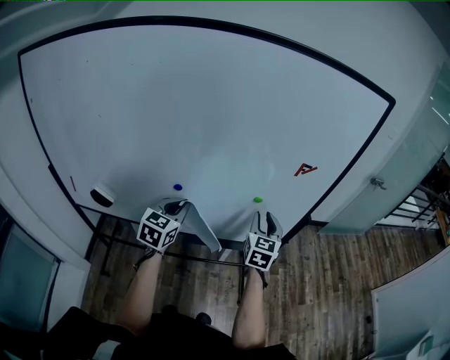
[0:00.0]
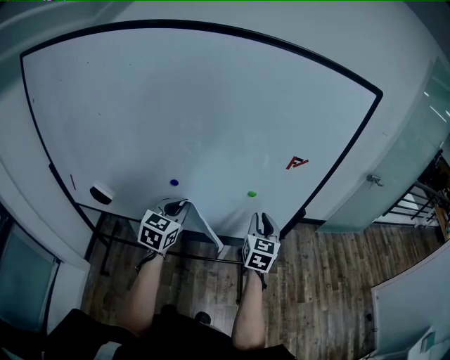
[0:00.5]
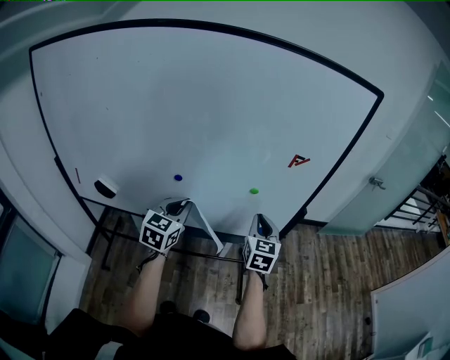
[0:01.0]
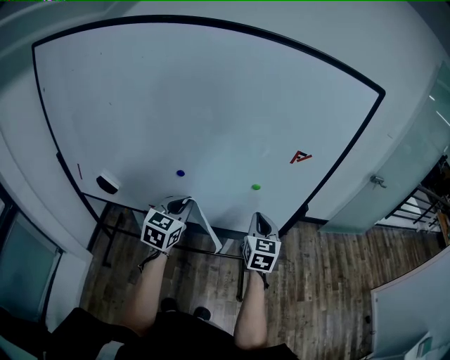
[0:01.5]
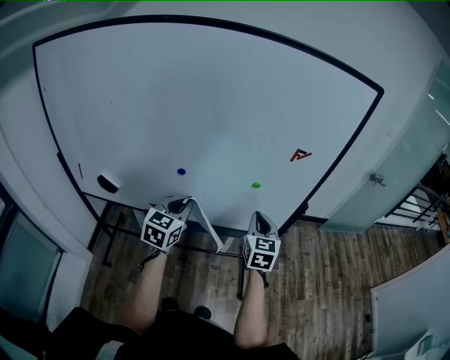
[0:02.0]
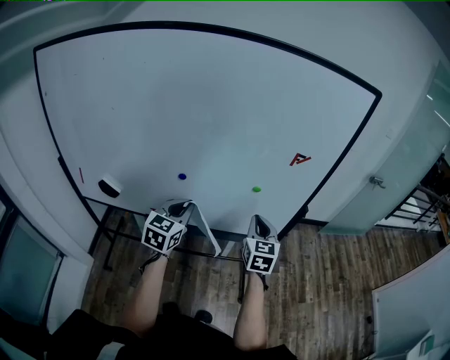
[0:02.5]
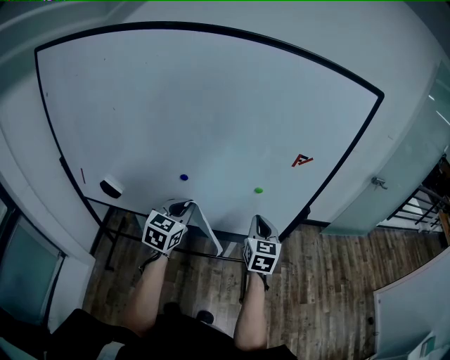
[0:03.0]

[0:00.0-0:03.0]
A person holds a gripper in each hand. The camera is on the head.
0:00.0 to 0:01.5: The two grippers go some 5 cm backward. The right gripper closes.
0:01.5 to 0:03.0: Both grippers stay put.

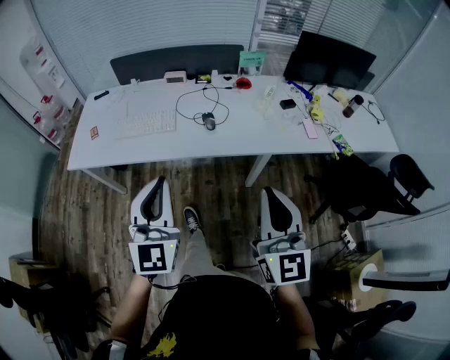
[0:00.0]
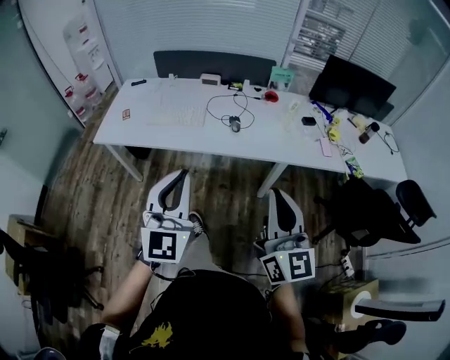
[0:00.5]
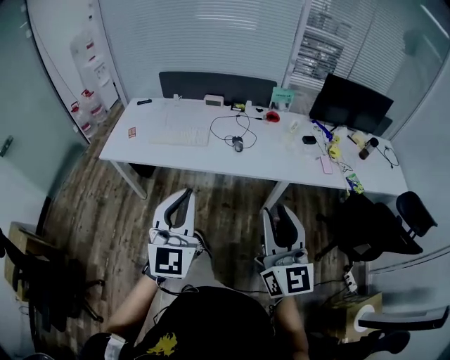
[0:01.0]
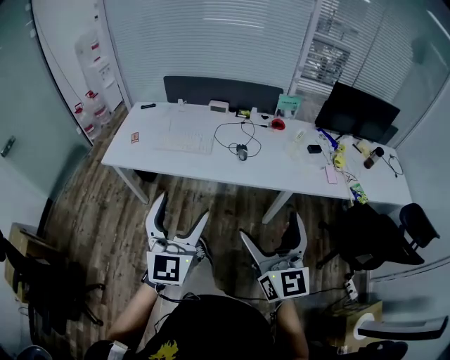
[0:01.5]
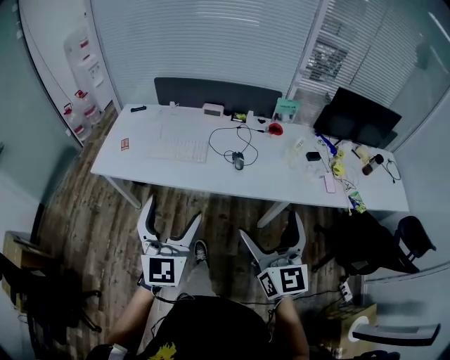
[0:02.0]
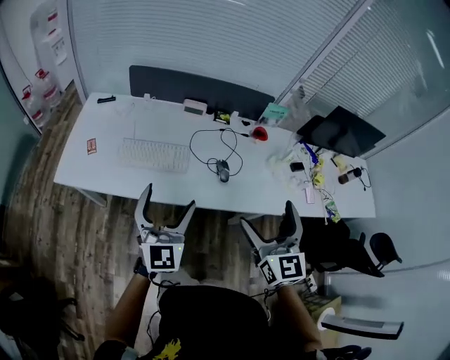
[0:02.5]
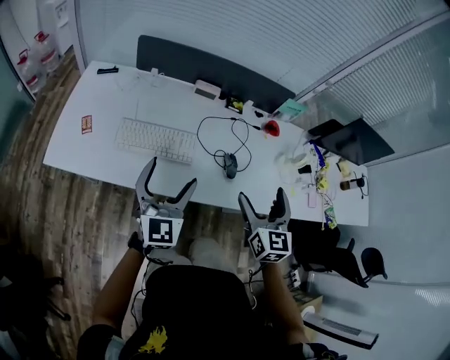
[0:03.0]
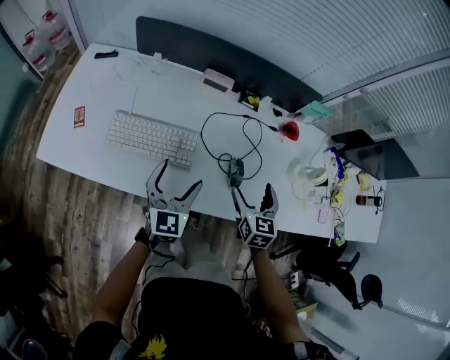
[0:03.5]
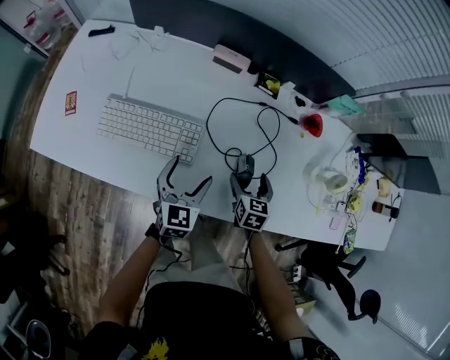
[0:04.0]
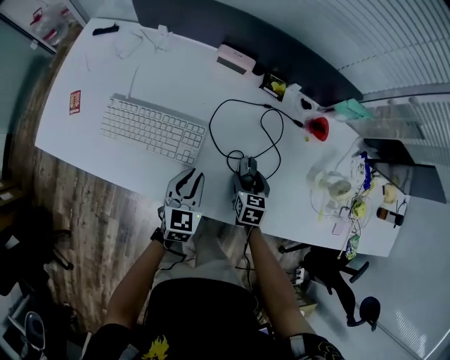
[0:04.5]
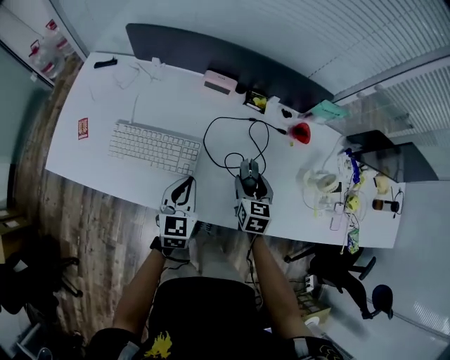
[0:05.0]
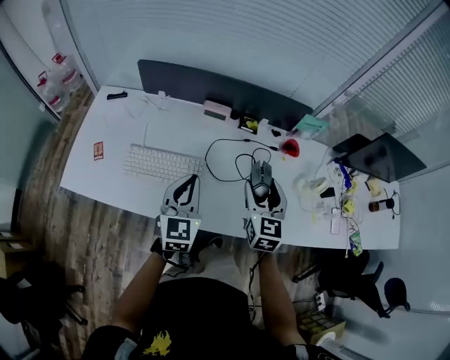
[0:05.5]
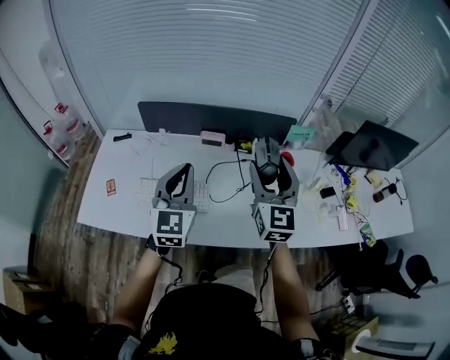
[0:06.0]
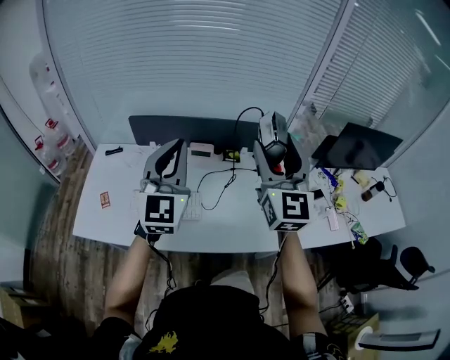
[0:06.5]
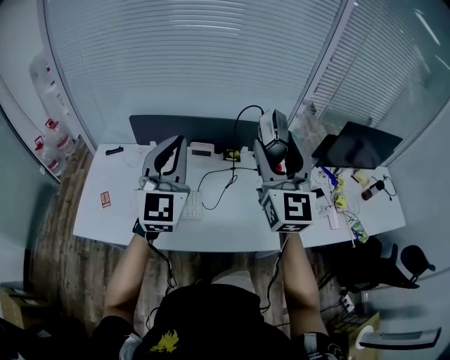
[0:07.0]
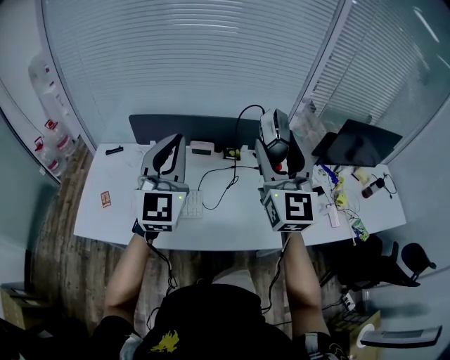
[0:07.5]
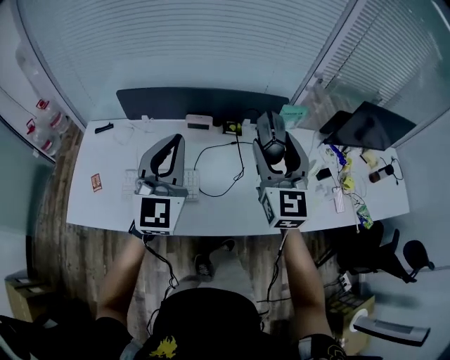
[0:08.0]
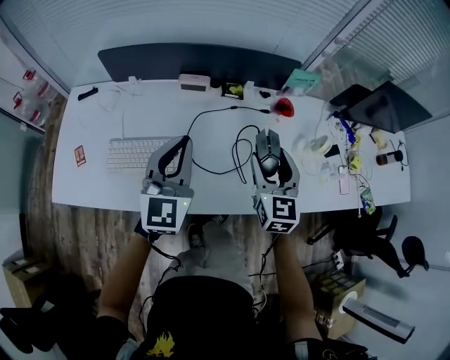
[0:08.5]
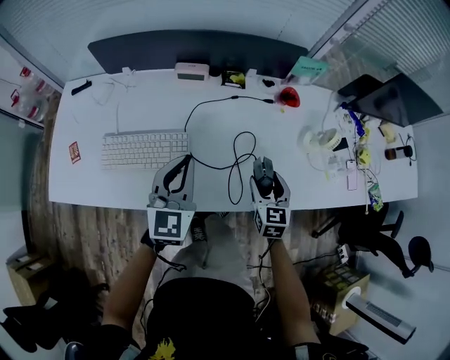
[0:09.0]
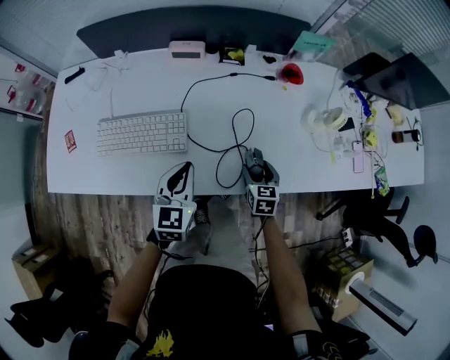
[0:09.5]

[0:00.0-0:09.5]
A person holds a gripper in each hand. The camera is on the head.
0:00.0 to 0:02.0: The left gripper reaches roughly 10 cm backward, then returns, and opens its fingers; the right gripper moves forward and to the left, roughly 10 cm, and opens.
0:02.0 to 0:04.0: The two grippers travel together, forward, about 50 cm. Both grippers travel together downward, approximately 40 cm. The left gripper tilts its fingers about 40 degrees downward. The right gripper angles its fingers downward, by roughly 50 degrees.
0:04.0 to 0:05.5: Both grippers move upward, some 25 cm. The left gripper closes its fingers, while the right gripper turns by about 30 degrees.
0:05.5 to 0:07.5: The two grippers go some 30 cm upward. The left gripper rotates approximately 30 degrees. The right gripper angles its fingers upward, by approximately 30 degrees.
0:07.5 to 0:09.5: The grippers both shift downward by some 50 cm. The right gripper tips its fingers downward by some 60 degrees. The left gripper angles its fingers downward, by roughly 40 degrees.

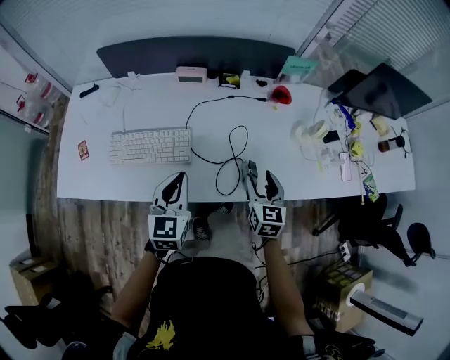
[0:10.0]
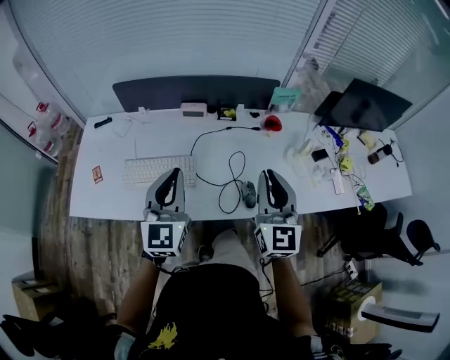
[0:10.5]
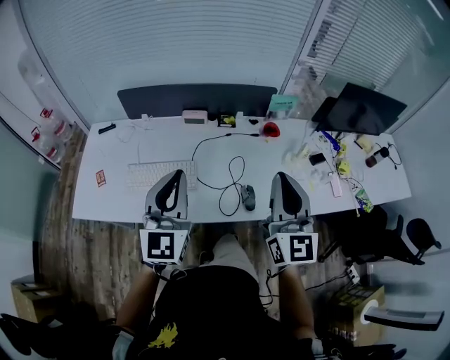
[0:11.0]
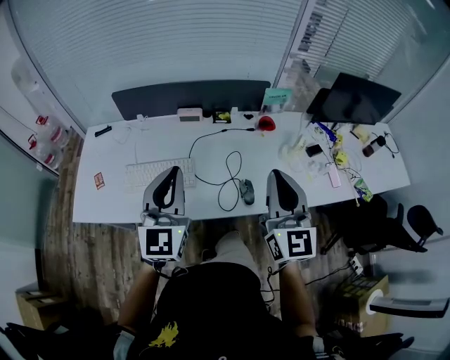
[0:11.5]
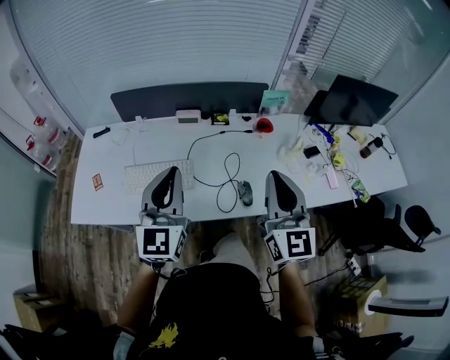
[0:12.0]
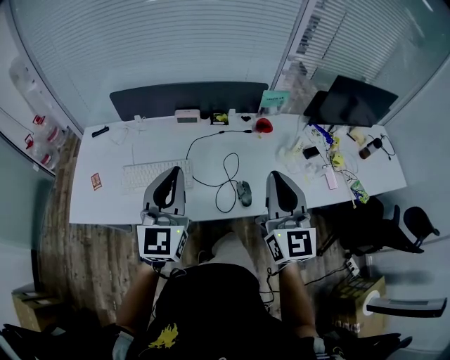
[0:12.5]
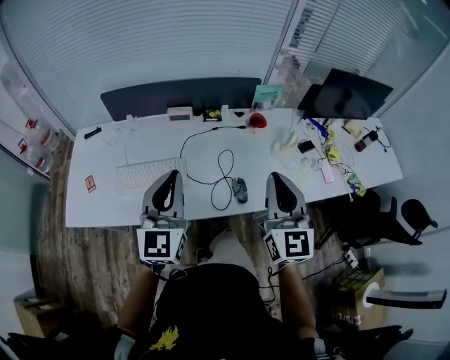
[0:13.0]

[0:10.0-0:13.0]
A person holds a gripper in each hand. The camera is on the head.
0:10.0 to 0:11.5: Both grippers travel together upward, some 25 cm. The left gripper swivels roughly 30 degrees, while the right gripper tips its fingers upward by some 30 degrees, and closes its fingers.
0:11.5 to 0:13.0: The grippers make only small movements.

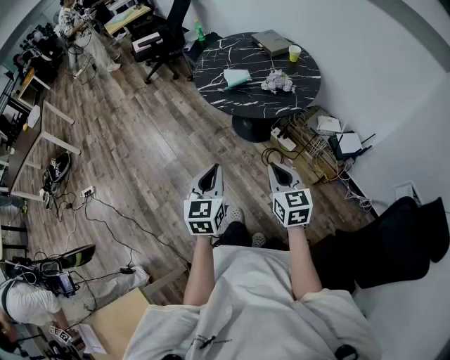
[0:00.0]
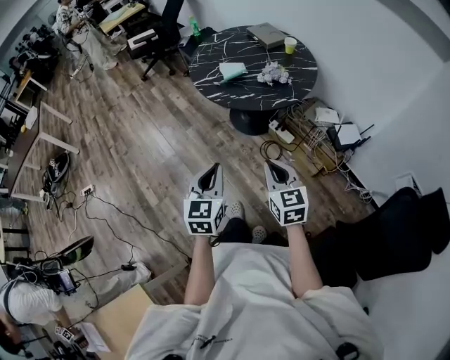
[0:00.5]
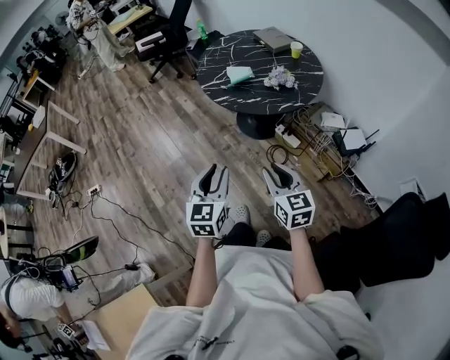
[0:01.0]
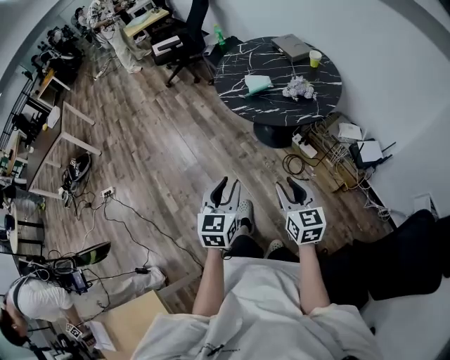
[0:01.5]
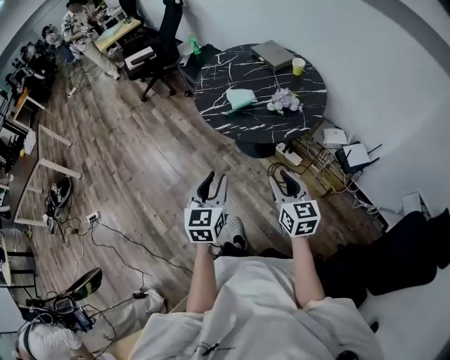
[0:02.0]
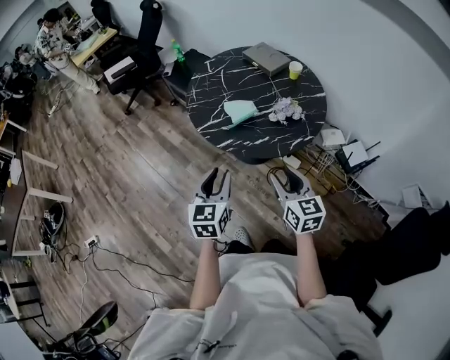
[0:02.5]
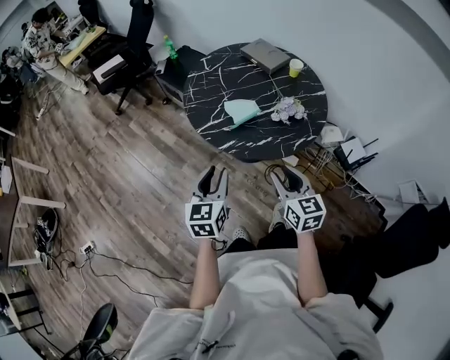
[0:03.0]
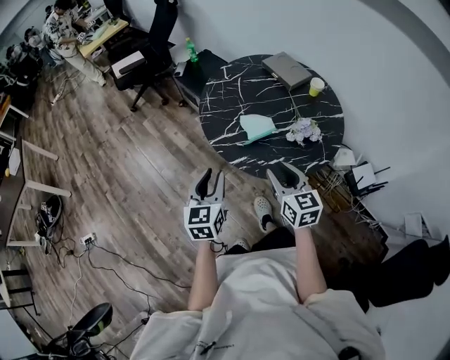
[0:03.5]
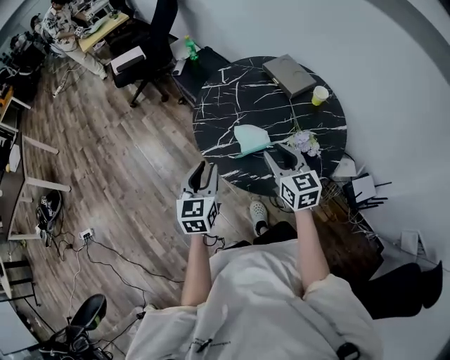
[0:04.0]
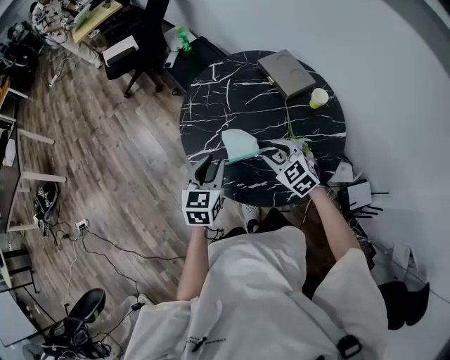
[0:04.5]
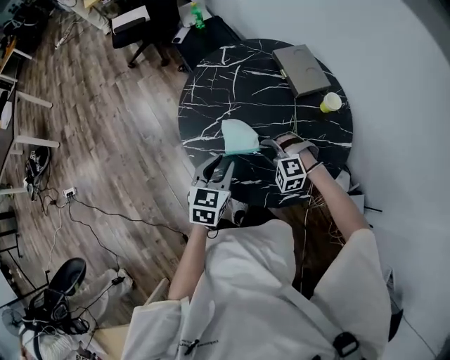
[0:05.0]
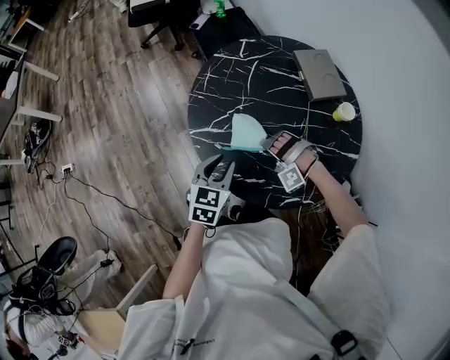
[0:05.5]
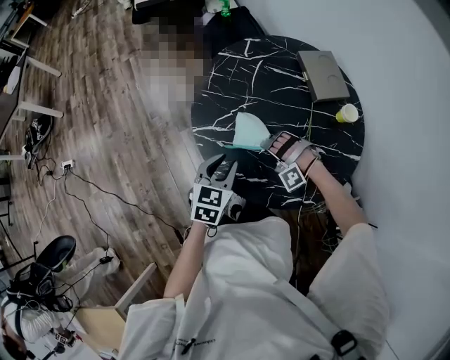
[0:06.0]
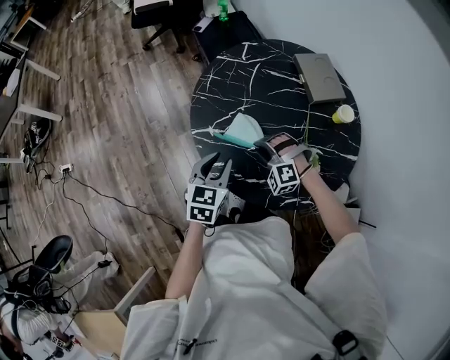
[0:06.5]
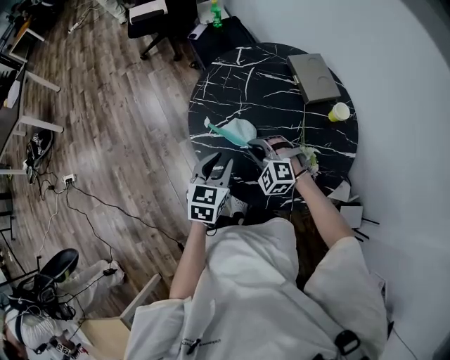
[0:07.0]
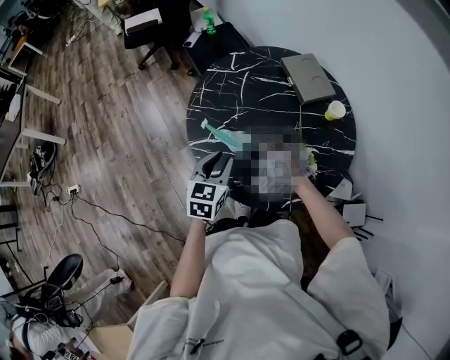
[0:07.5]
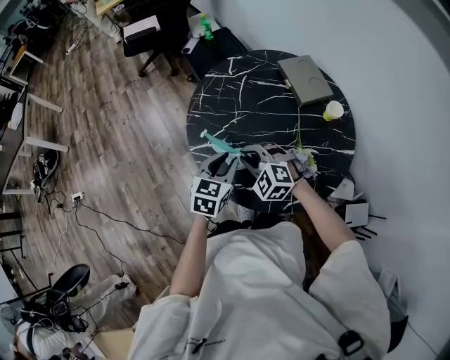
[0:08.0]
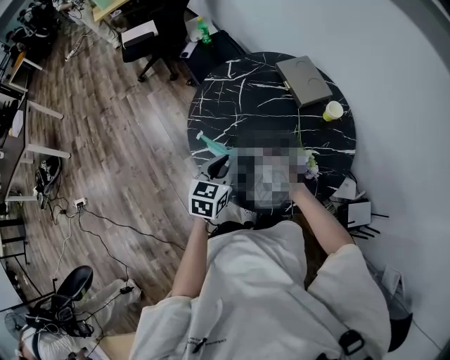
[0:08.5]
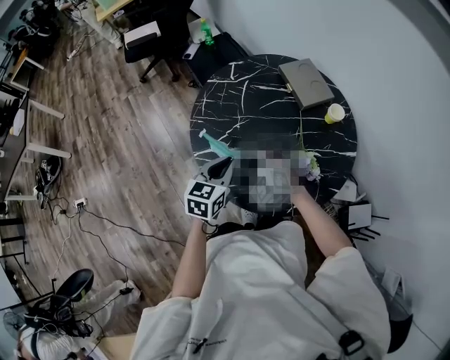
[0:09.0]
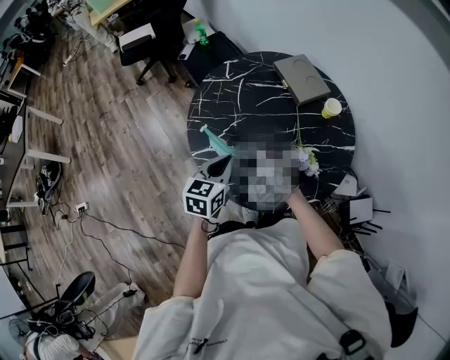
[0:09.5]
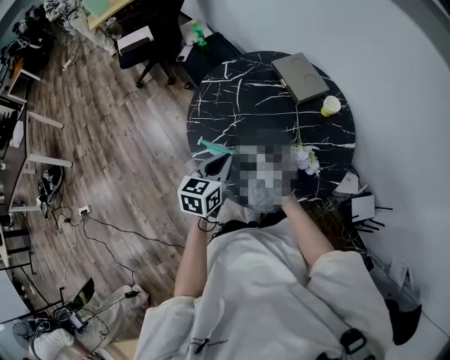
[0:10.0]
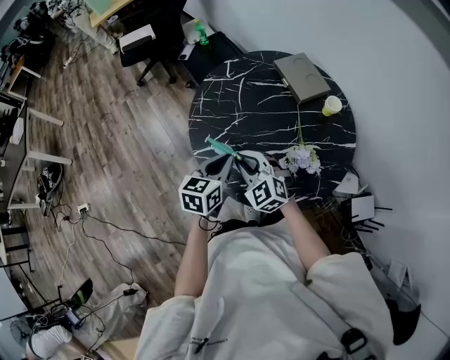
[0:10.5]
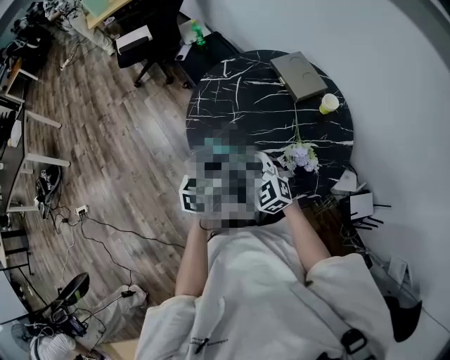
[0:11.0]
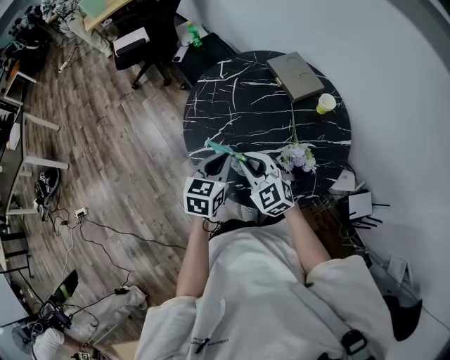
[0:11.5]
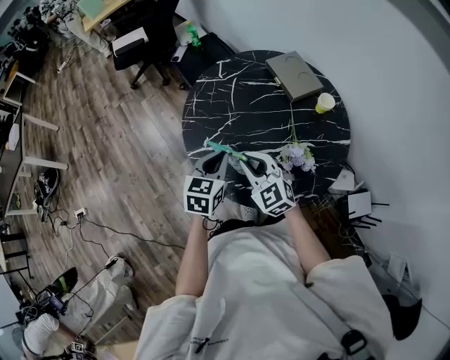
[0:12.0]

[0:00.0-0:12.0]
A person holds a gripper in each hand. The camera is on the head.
0:00.0 to 0:02.0: The two grippers go about 10 cm forward. The right gripper opens its fingers; the left gripper opens.
0:02.0 to 0:04.0: The two grippers go approximately 35 cm forward.
0:04.0 to 0:06.0: The left gripper is displaced downward and to the right by roughly 15 cm; the right gripper moves downward, about 25 cm, and rolls counterclockwise, seen from behind, by about 110 degrees.
0:06.0 to 0:08.0: The right gripper moves upward, approximately 10 cm, and rolls clockwise, seen from behind, by approximately 60 degrees.
0:08.0 to 0:10.0: The left gripper closes up. The right gripper turns by about 20 degrees.
0:10.0 to 0:12.0: There are only small adjustments of the grippers.
